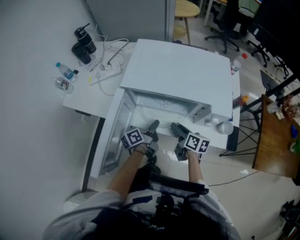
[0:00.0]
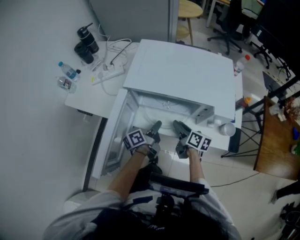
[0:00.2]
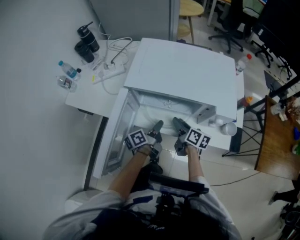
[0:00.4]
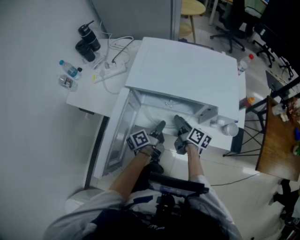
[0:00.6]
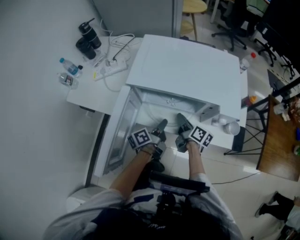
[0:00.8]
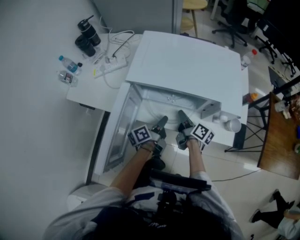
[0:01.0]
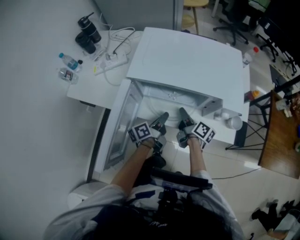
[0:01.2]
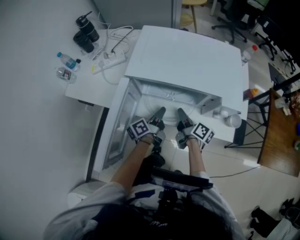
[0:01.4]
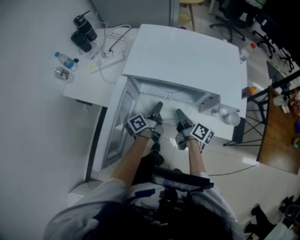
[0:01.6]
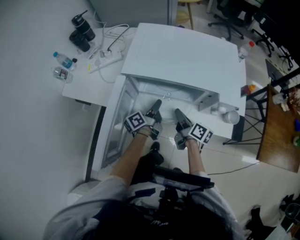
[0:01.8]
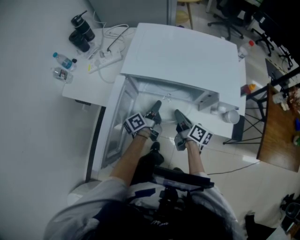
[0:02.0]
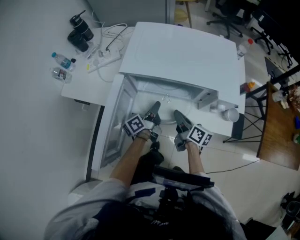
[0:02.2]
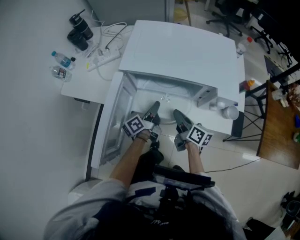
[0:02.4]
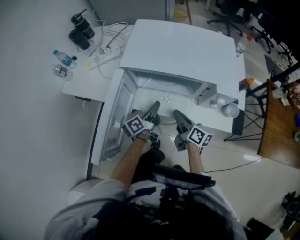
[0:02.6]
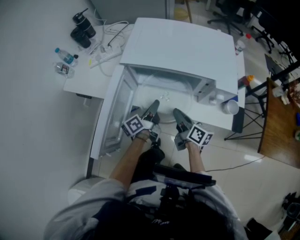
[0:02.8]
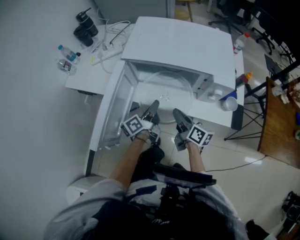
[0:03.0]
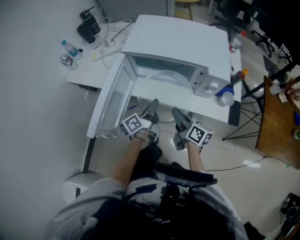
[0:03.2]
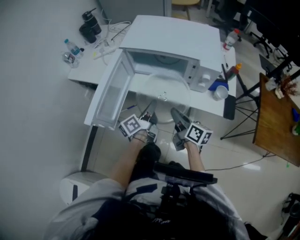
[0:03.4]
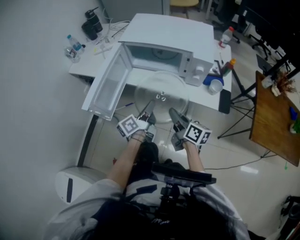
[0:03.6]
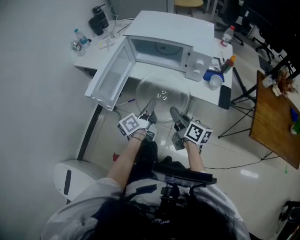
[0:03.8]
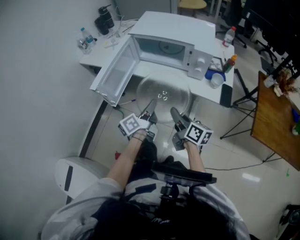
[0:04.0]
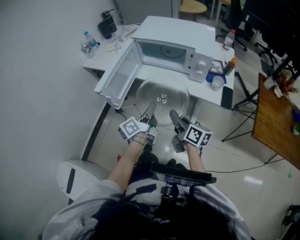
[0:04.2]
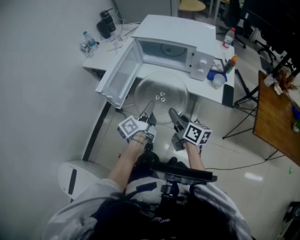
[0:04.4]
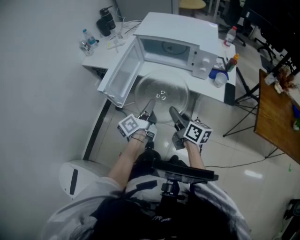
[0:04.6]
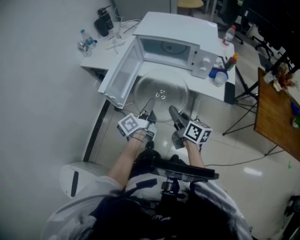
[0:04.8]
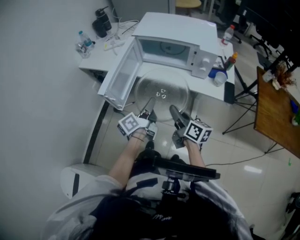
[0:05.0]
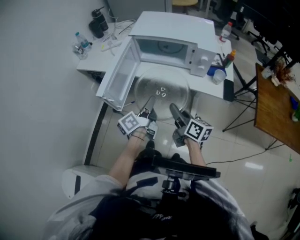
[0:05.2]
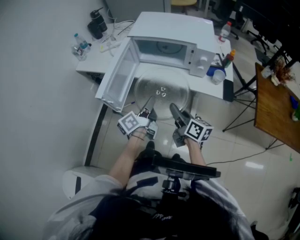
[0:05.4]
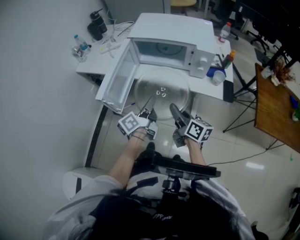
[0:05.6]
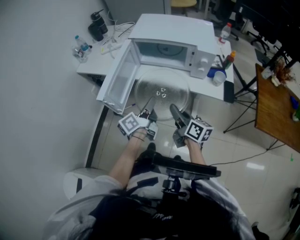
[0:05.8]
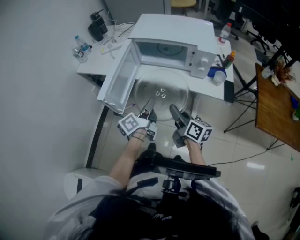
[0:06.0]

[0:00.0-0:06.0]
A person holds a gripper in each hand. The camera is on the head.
0:00.0 to 0:01.6: The right gripper closes its fingers.
0:01.6 to 0:03.0: The grippers both shift backward by about 10 cm.
0:03.0 to 0:04.4: Both grippers travel together backward, some 20 cm.
0:04.4 to 0:06.0: The grippers stay close to where they were, moving slightly.

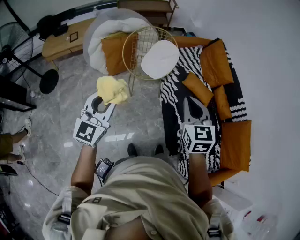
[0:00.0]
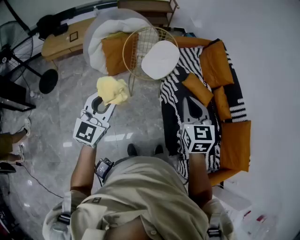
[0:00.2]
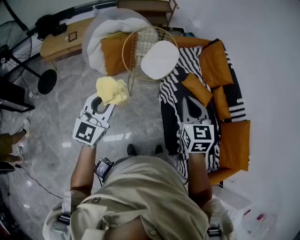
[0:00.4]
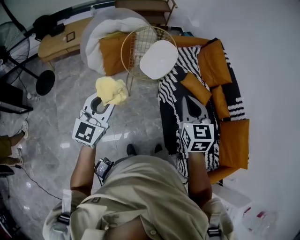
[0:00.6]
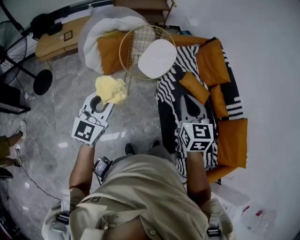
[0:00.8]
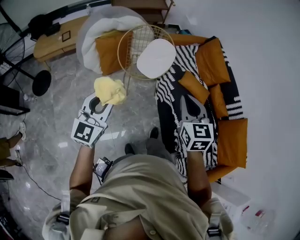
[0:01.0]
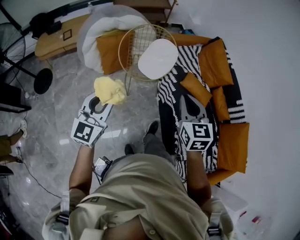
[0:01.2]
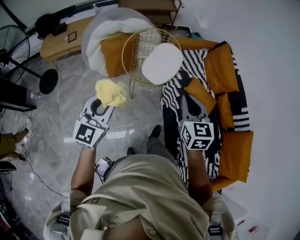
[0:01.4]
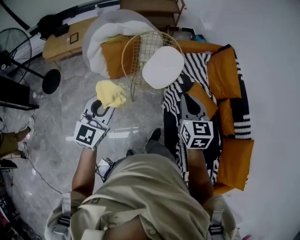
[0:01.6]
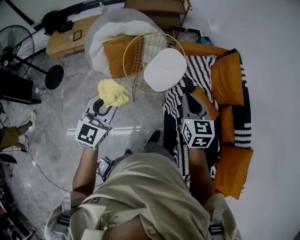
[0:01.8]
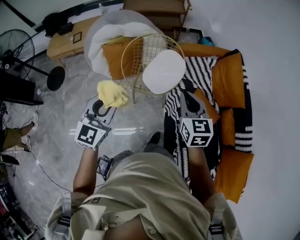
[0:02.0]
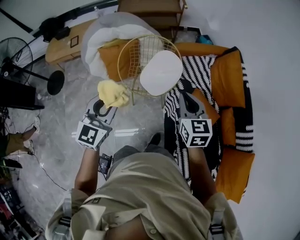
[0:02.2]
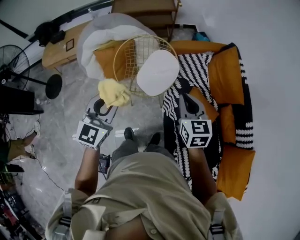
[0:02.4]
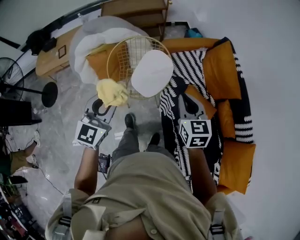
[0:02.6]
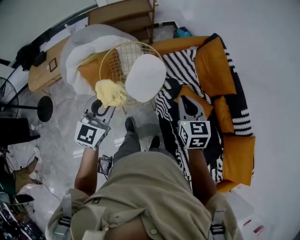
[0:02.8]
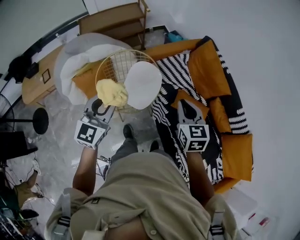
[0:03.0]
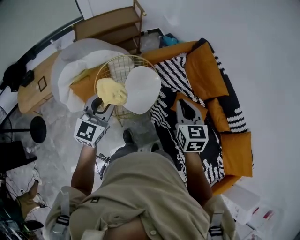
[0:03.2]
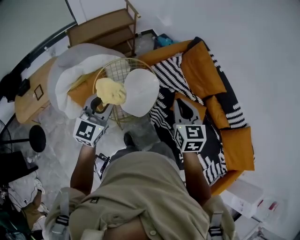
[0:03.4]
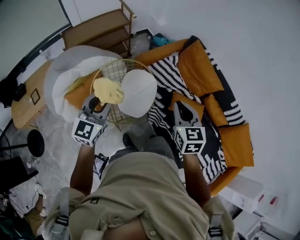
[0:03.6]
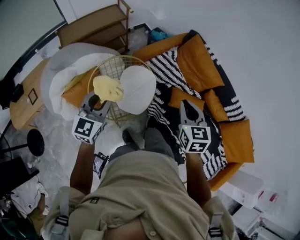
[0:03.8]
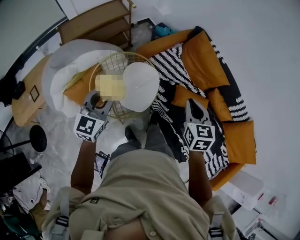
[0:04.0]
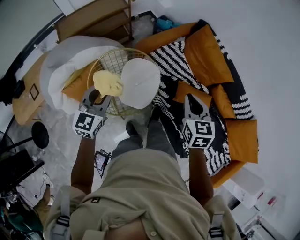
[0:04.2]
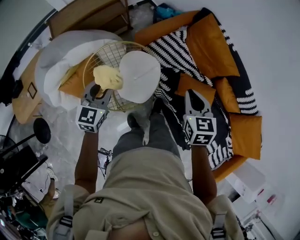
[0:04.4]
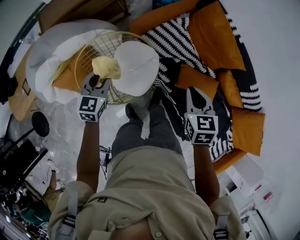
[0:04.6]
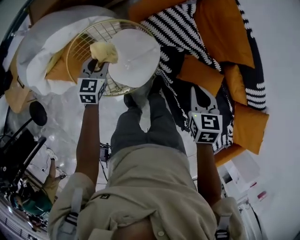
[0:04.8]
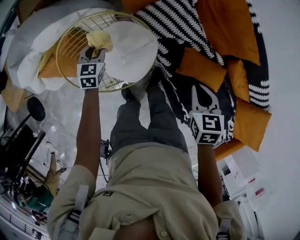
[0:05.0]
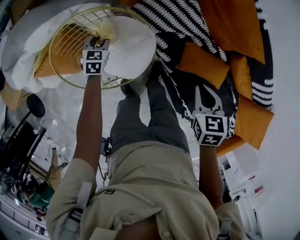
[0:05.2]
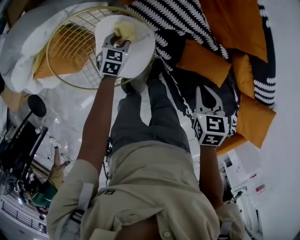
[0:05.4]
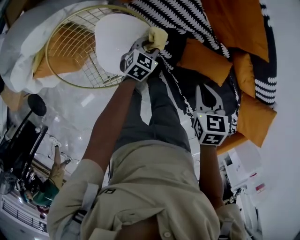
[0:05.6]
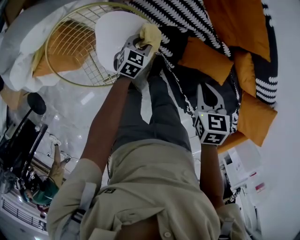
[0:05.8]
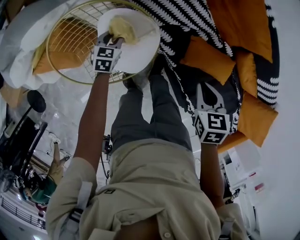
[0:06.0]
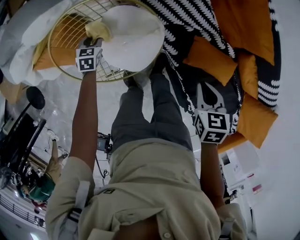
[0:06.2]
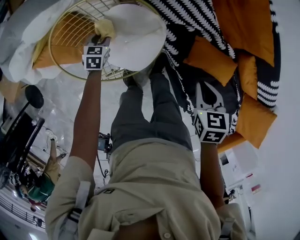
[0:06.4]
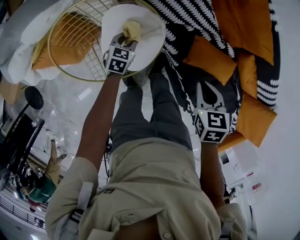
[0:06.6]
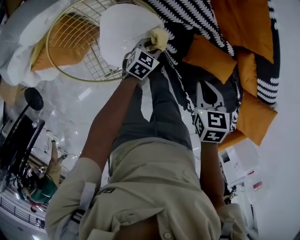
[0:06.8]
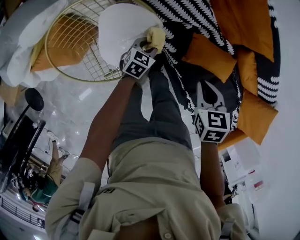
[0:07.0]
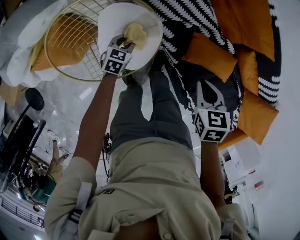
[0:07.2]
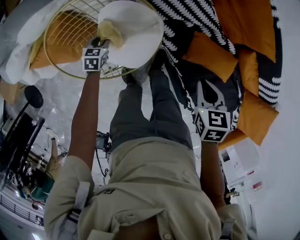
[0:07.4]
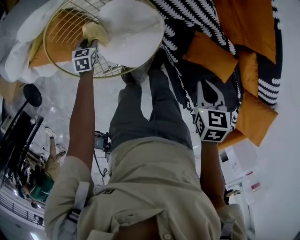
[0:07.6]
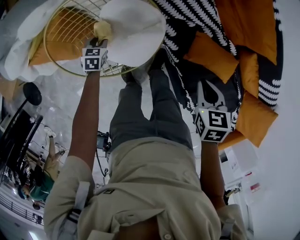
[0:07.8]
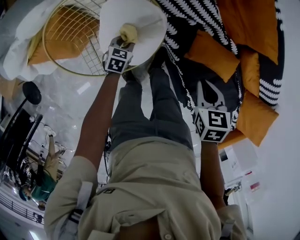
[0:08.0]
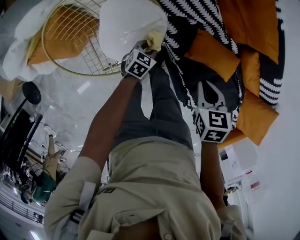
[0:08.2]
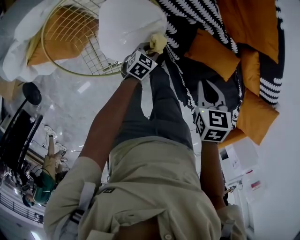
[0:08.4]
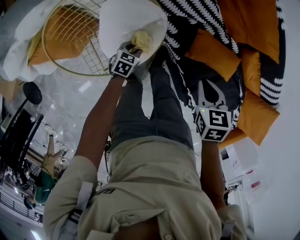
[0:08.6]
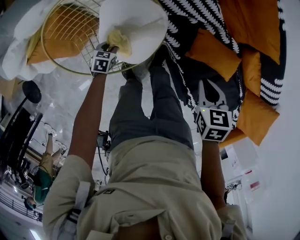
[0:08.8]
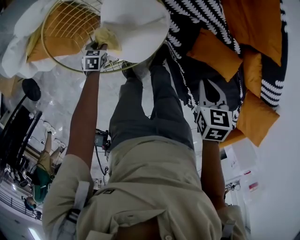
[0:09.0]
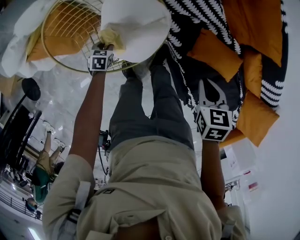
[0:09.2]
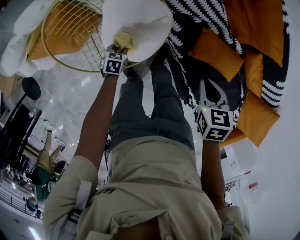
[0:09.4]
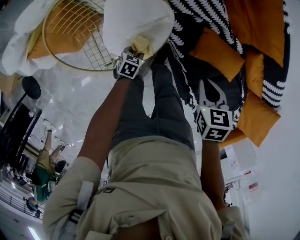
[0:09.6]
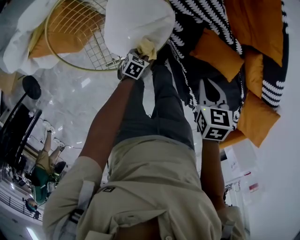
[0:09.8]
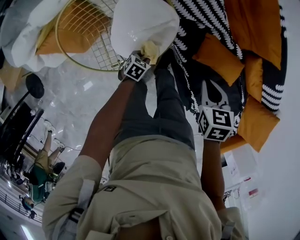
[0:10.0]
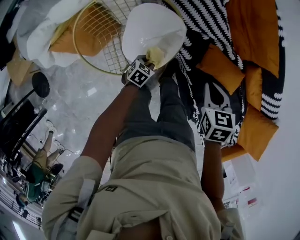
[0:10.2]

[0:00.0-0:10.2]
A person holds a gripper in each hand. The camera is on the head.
0:00.0 to 0:01.4: Both grippers travel together forward, about 10 cm.
0:01.4 to 0:03.0: Both grippers move forward, roughly 30 cm.
0:03.0 to 0:04.4: The right gripper moves forward and downward, approximately 15 cm, while the left gripper goes approximately 25 cm forward and downward.
0:04.4 to 0:05.8: The right gripper is displaced downward by about 25 cm, and rotates some 30 degrees, while the left gripper heads downward and to the right, covering some 40 cm, and turns by roughly 30 degrees.
0:05.8 to 0:07.2: The left gripper moves left and right over about 30 cm, changing direction 2 times.
0:07.2 to 0:08.8: The left gripper moves about 15 cm.
0:08.8 to 0:10.2: The left gripper travels to the right and upward by about 15 cm. The right gripper moves upward, some 5 cm.

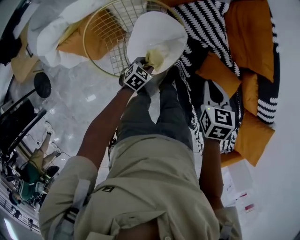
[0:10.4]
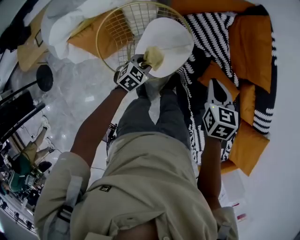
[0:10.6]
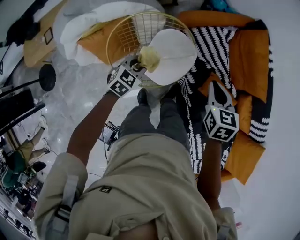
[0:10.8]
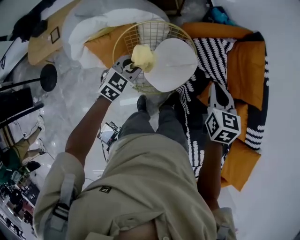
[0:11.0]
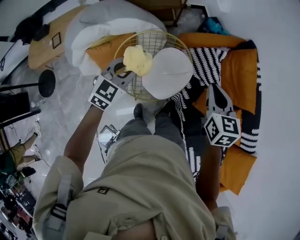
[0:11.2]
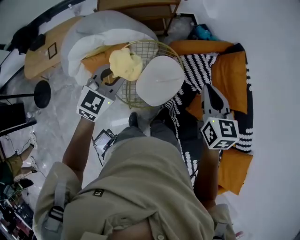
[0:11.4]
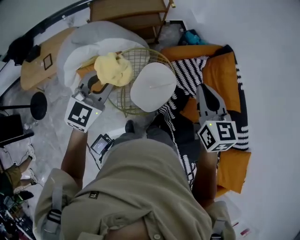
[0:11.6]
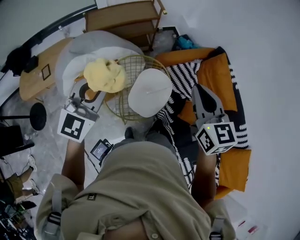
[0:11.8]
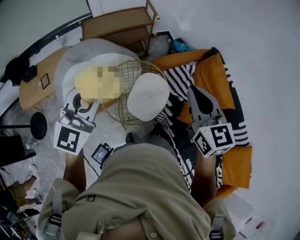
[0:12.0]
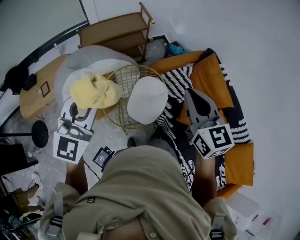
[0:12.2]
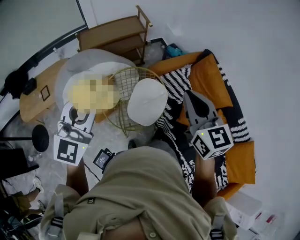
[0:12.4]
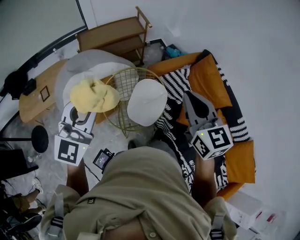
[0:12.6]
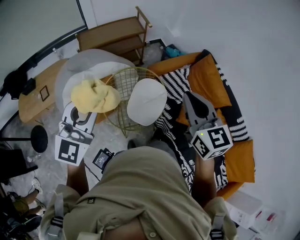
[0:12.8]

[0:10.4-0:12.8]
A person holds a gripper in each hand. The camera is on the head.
0:10.4 to 0:11.6: The left gripper moves upward, some 50 cm, and tips its fingers upward by about 40 degrees. Meanwhile the right gripper moves upward, approximately 30 cm, and tips its fingers upward by some 40 degrees.
0:11.6 to 0:12.8: The right gripper heads backward and upward, covering roughly 15 cm. Meanwhile the left gripper is displaced upward and backward by approximately 15 cm, and swivels some 20 degrees.

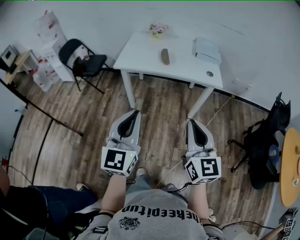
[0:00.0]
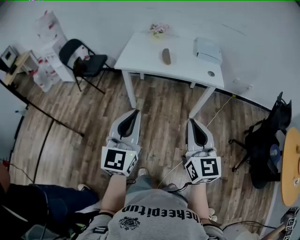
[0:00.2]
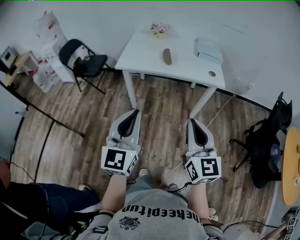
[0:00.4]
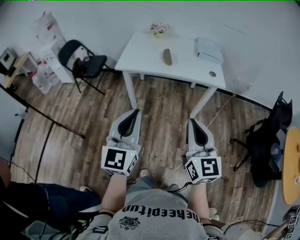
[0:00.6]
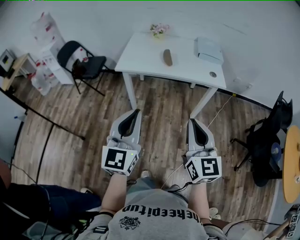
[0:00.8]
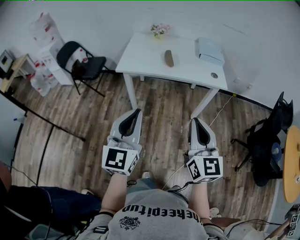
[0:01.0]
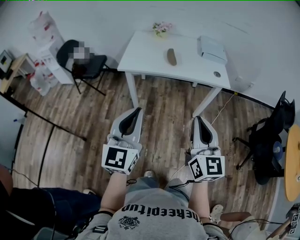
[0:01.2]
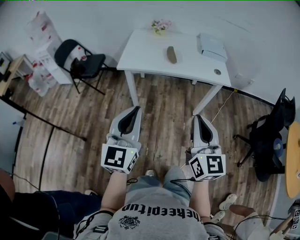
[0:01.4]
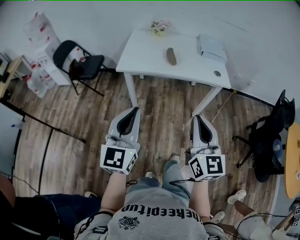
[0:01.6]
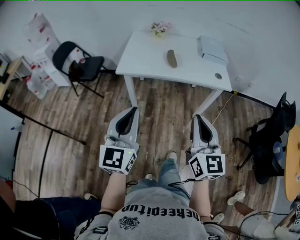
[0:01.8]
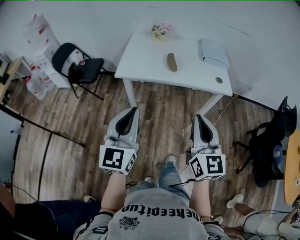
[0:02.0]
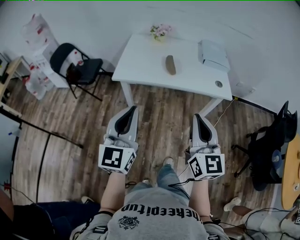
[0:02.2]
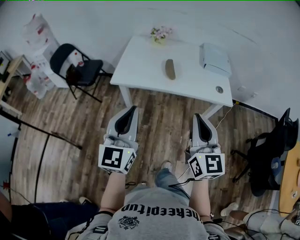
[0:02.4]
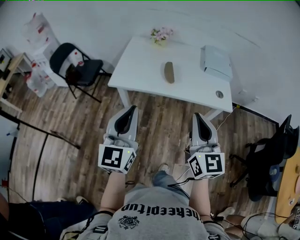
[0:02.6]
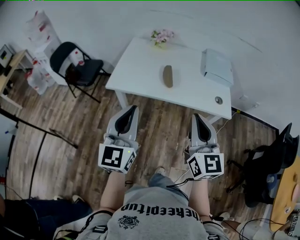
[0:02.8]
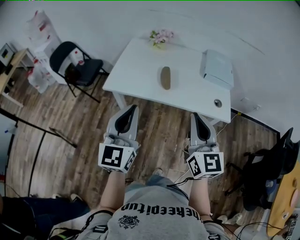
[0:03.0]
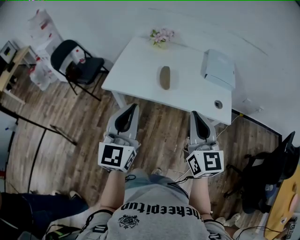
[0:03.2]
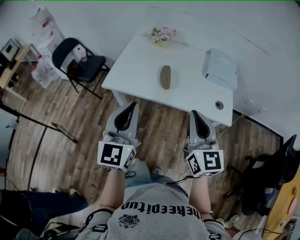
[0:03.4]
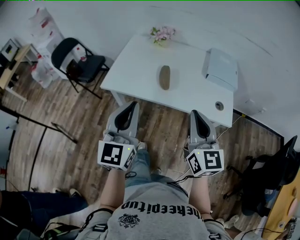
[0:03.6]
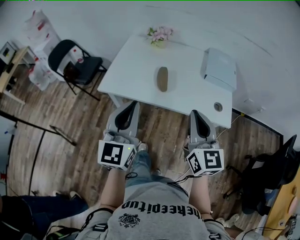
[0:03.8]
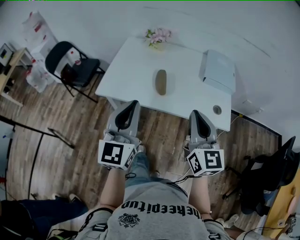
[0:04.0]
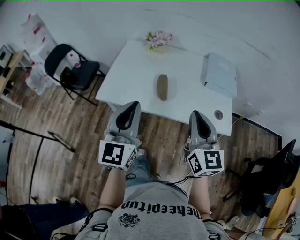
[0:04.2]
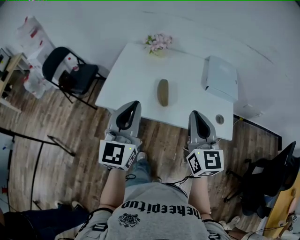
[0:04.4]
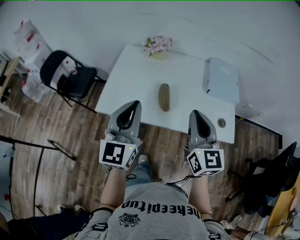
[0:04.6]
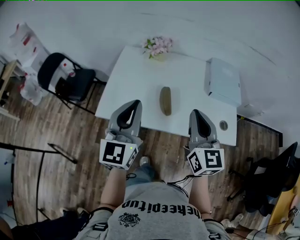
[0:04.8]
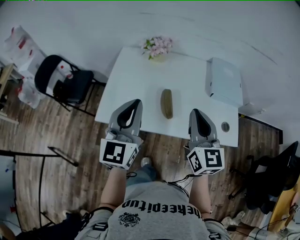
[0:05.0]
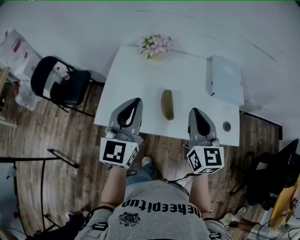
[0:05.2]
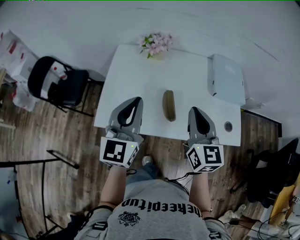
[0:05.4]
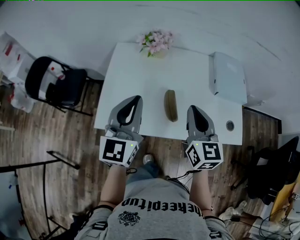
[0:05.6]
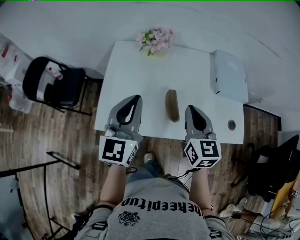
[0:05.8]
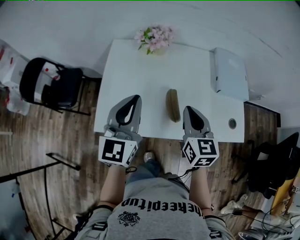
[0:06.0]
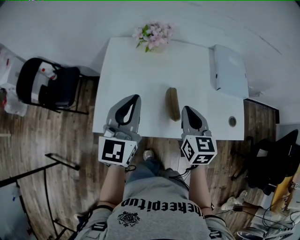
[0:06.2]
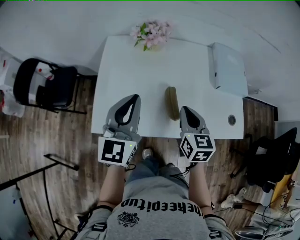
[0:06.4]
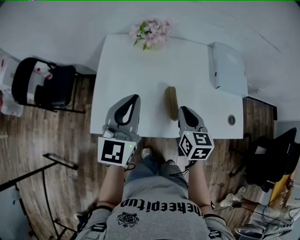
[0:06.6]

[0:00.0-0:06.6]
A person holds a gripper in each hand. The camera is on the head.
0:00.0 to 0:01.6: The two grippers go approximately 10 cm to the left and forward.
0:01.6 to 0:03.2: The left gripper heads forward and to the right, covering approximately 25 cm; the right gripper heads forward, covering approximately 25 cm.
0:03.2 to 0:05.0: Both grippers move forward, some 20 cm.
0:05.0 to 0:06.6: The left gripper shifts about 15 cm forward, downward and to the left; the right gripper travels downward and forward by some 15 cm, and turns by approximately 30 degrees.
